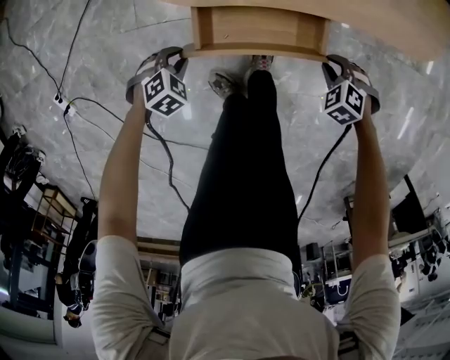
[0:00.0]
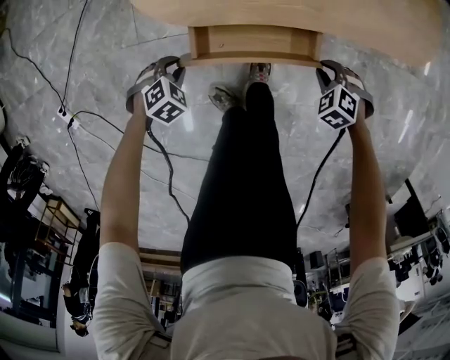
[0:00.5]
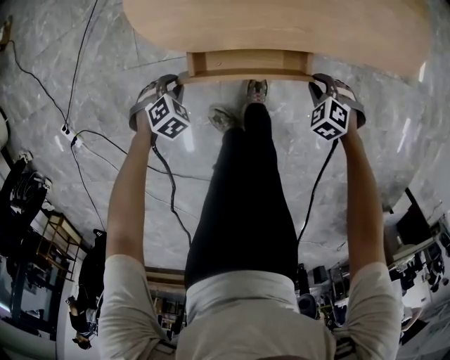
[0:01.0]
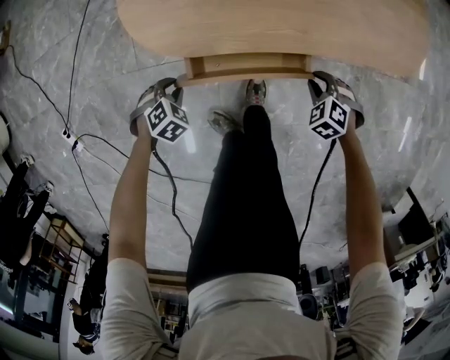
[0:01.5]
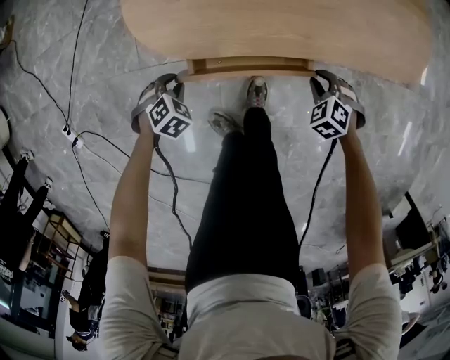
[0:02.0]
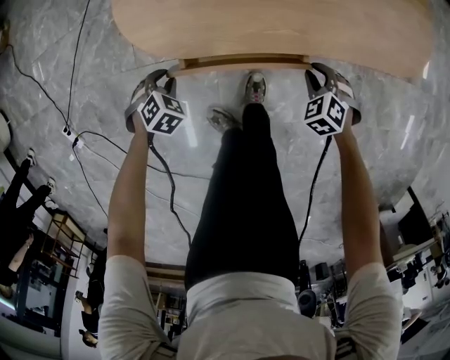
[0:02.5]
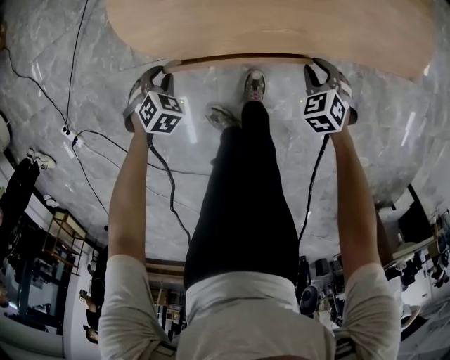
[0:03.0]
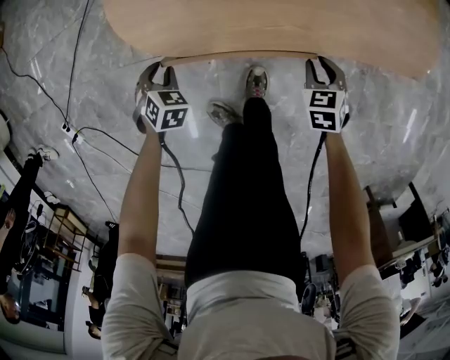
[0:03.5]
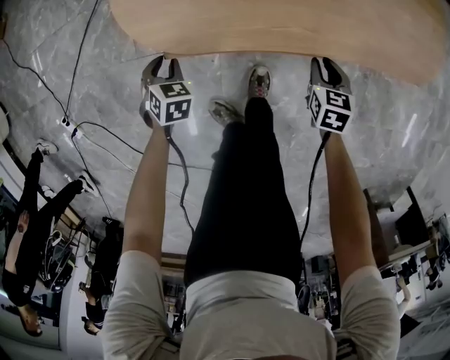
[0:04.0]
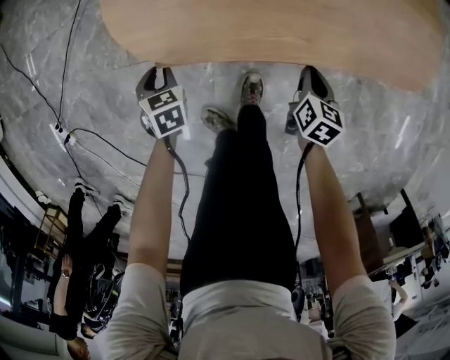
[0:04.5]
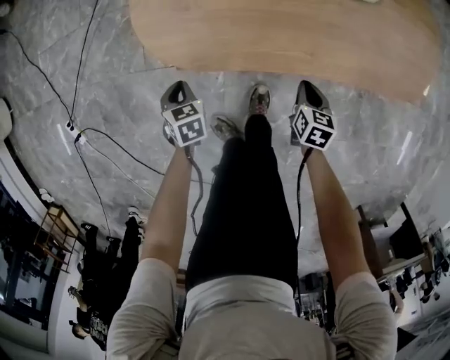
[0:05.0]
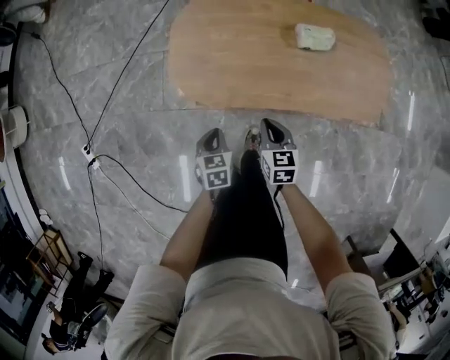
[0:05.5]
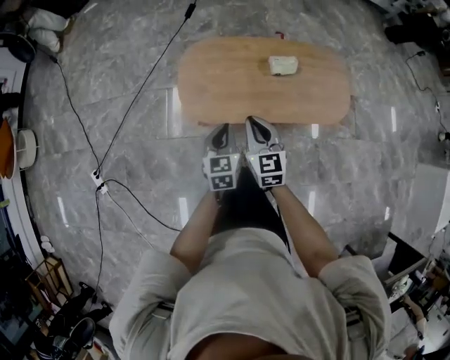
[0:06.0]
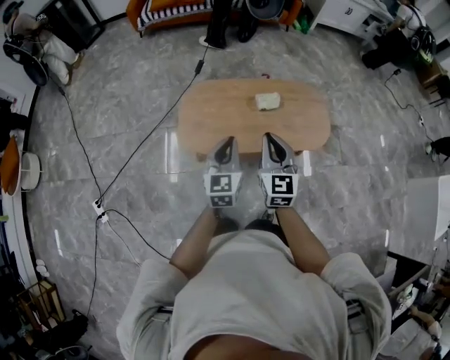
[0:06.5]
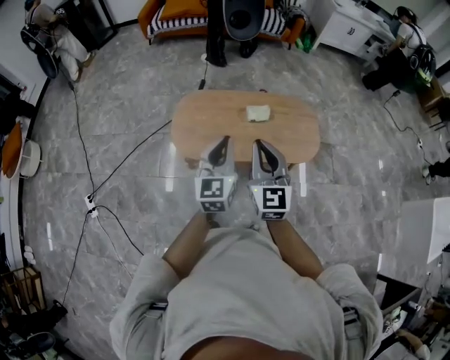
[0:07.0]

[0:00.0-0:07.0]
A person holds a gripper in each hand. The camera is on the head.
0:00.0 to 0:02.0: The right gripper moves roughly 10 cm; the left gripper changes place by roughly 5 cm.
0:02.0 to 0:03.5: The left gripper turns by roughly 30 degrees. The right gripper changes its angle by some 40 degrees.
0:03.5 to 0:05.0: The right gripper changes its angle by about 30 degrees. The left gripper swivels approximately 30 degrees, and closes up.
0:05.0 to 0:07.0: Both grippers move upward, roughly 70 cm. The right gripper tips its fingers upward by about 50 degrees, while the left gripper tilts its fingers approximately 60 degrees upward.

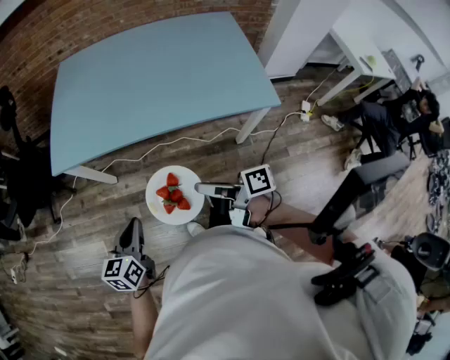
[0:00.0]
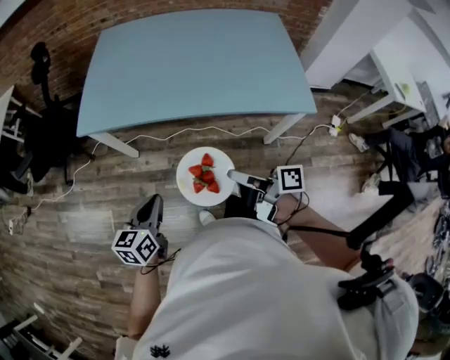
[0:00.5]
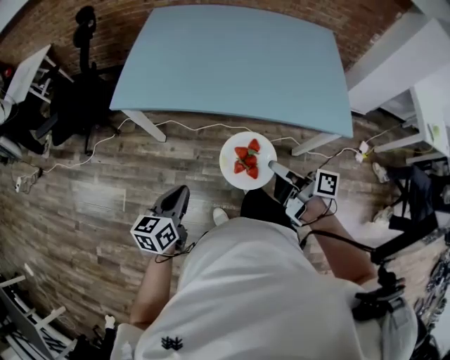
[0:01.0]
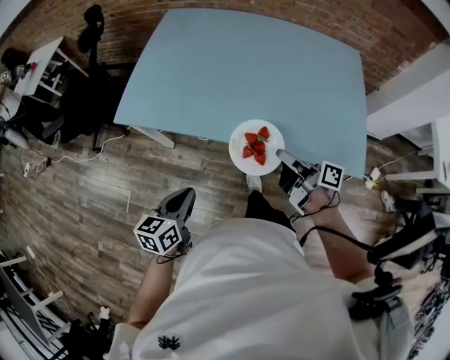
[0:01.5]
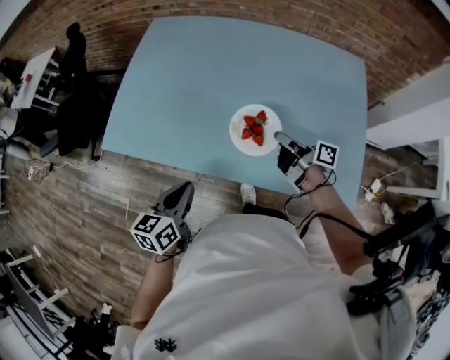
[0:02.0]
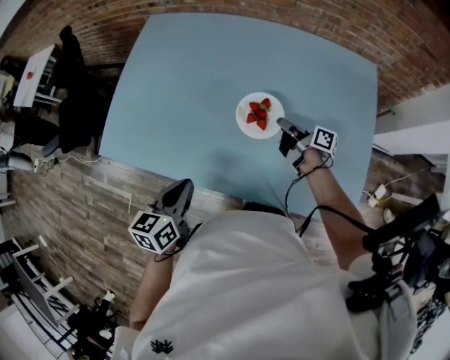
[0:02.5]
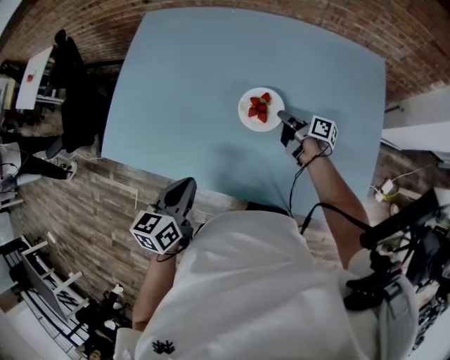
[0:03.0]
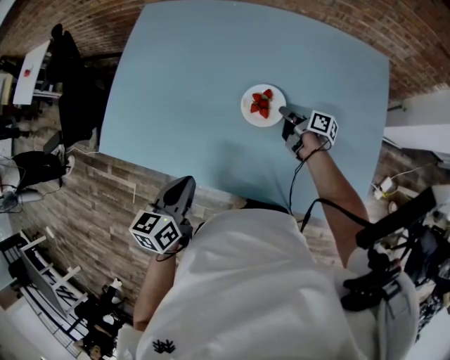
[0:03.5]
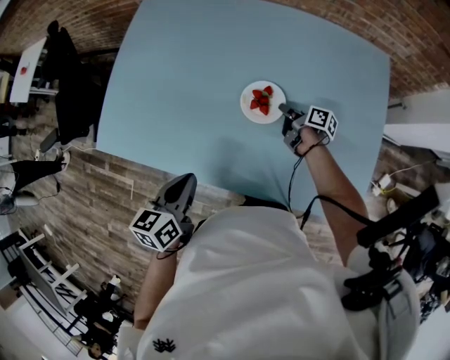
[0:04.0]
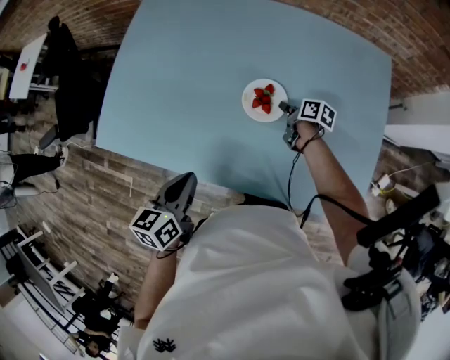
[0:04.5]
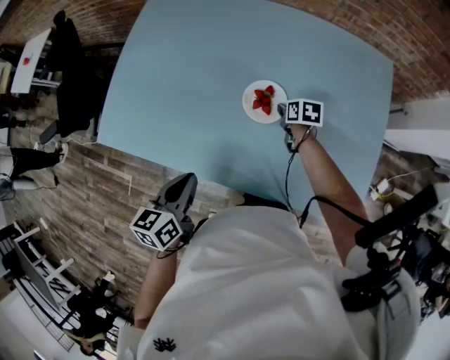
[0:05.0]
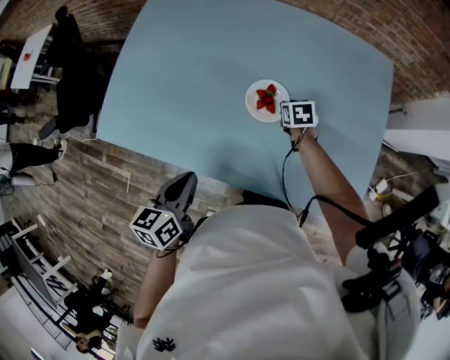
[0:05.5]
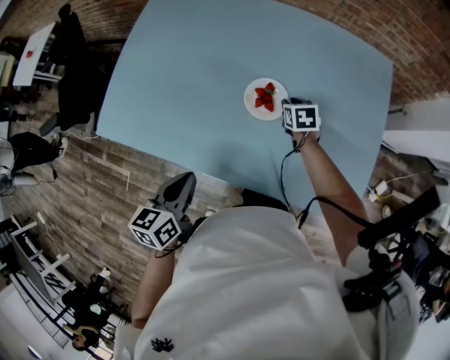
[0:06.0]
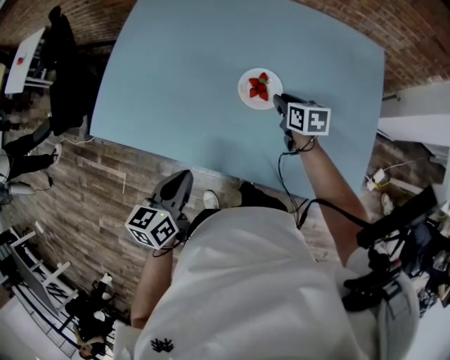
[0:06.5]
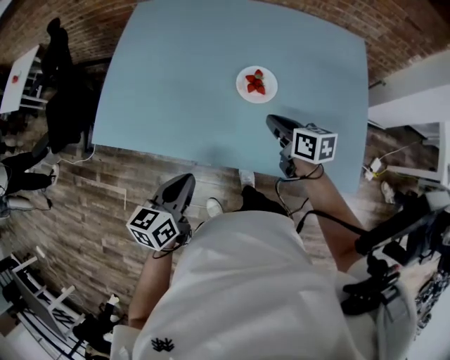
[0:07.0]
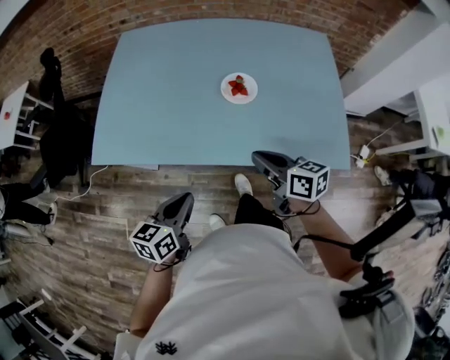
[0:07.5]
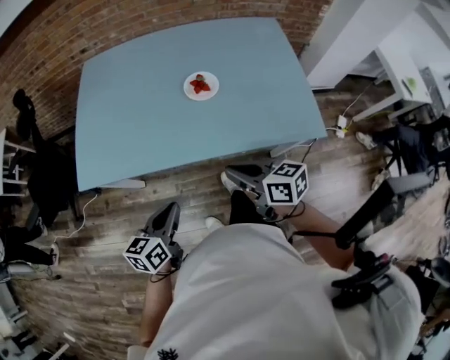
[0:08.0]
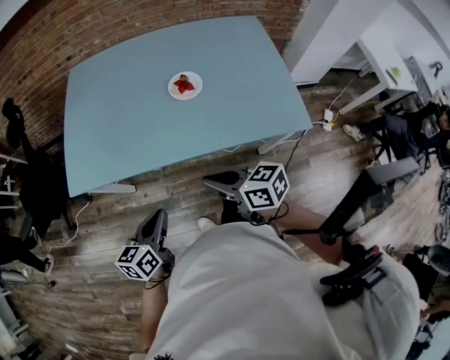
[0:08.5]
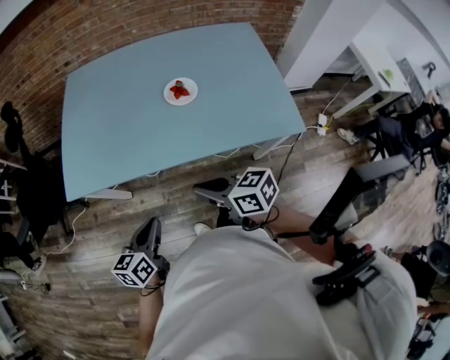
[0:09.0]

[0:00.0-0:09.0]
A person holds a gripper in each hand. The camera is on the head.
0:00.0 to 0:02.0: The left gripper moves forward and to the right, some 30 cm, while the right gripper travels forward and to the right by some 40 cm.
0:02.0 to 0:04.5: The right gripper heads forward and downward, covering about 20 cm, and angles its fingers downward, by roughly 30 degrees. Meanwhile the left gripper goes about 10 cm forward.
0:04.5 to 0:07.0: The left gripper is displaced backward by about 10 cm. The right gripper moves upward, backward and to the left, about 25 cm, and turns by some 30 degrees.
0:07.0 to 0:09.0: The right gripper goes about 30 cm backward and to the left, while the left gripper is displaced backward and to the left by approximately 15 cm.

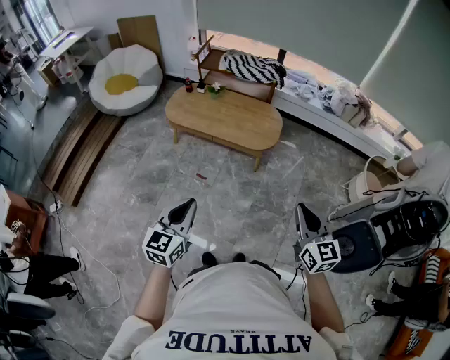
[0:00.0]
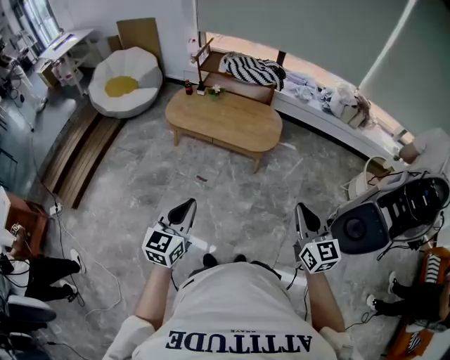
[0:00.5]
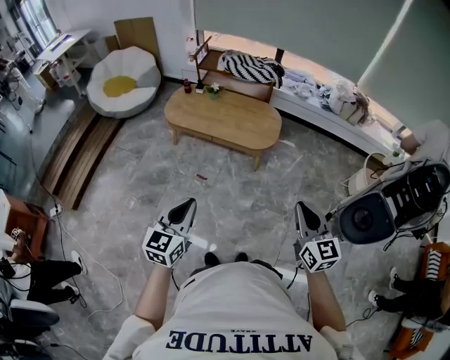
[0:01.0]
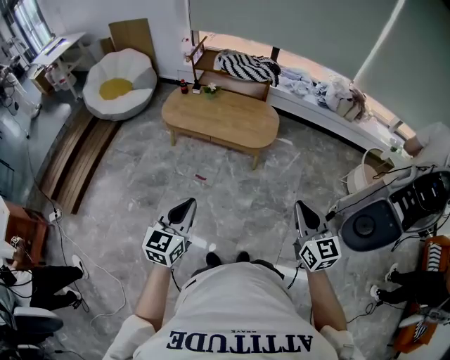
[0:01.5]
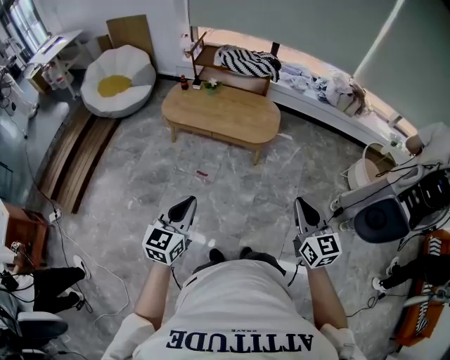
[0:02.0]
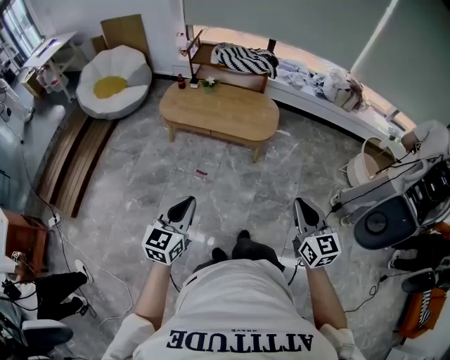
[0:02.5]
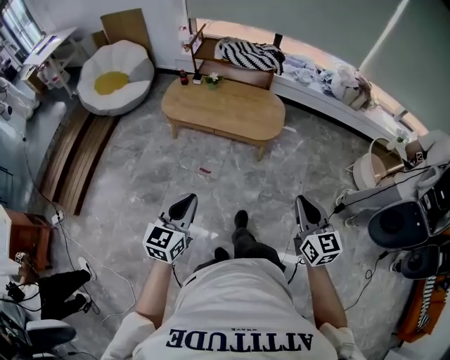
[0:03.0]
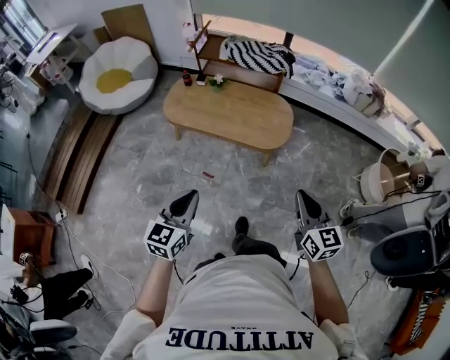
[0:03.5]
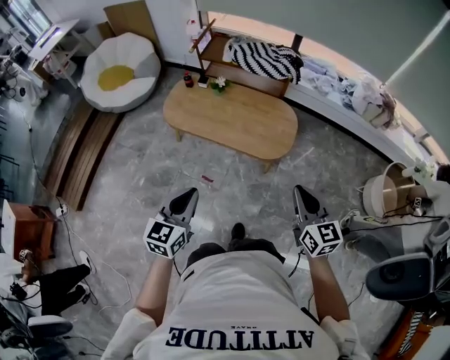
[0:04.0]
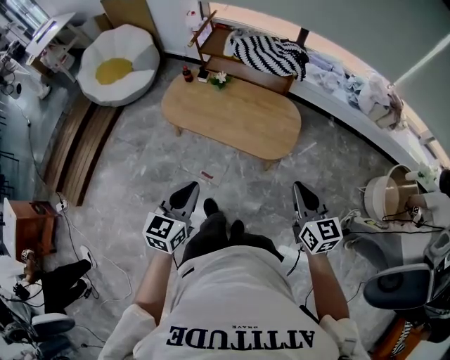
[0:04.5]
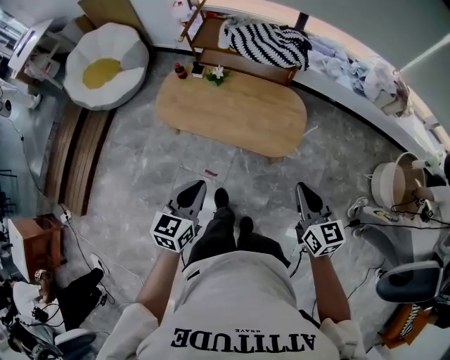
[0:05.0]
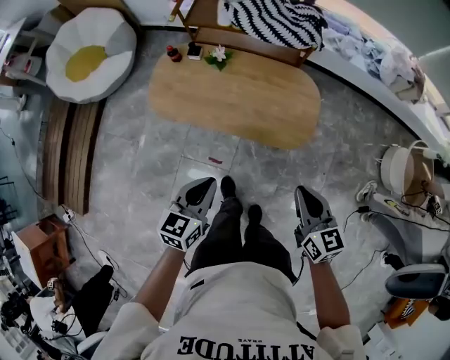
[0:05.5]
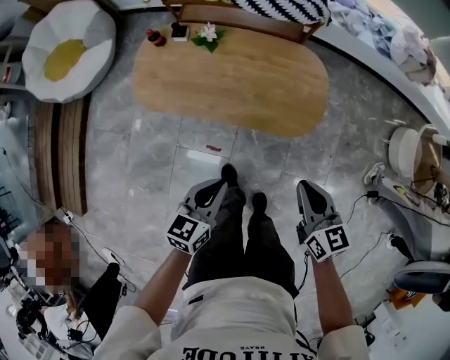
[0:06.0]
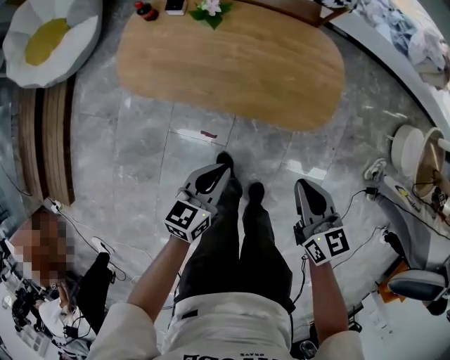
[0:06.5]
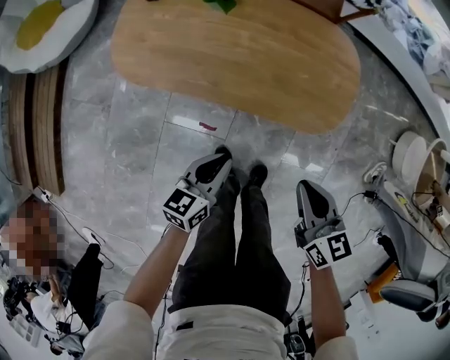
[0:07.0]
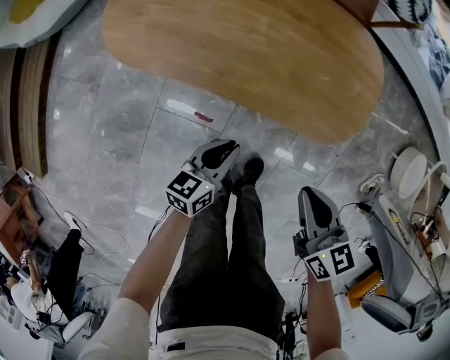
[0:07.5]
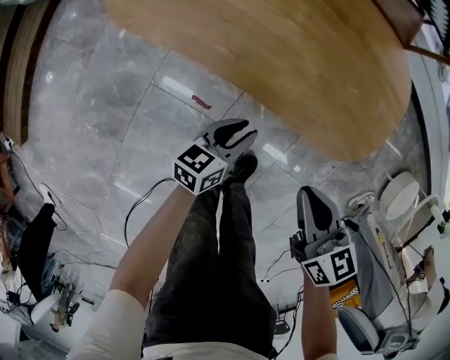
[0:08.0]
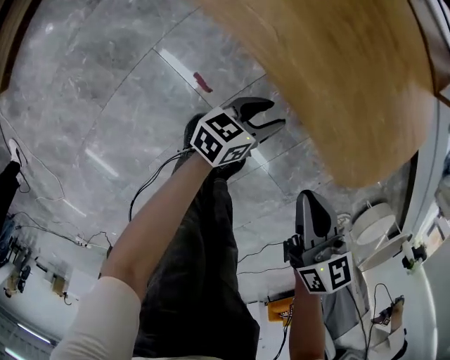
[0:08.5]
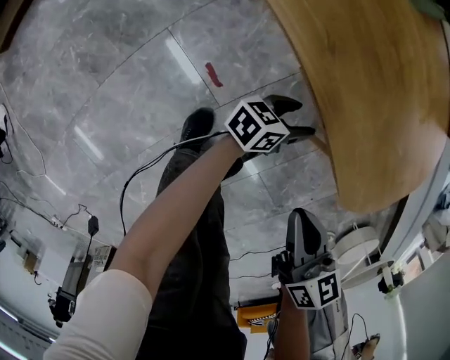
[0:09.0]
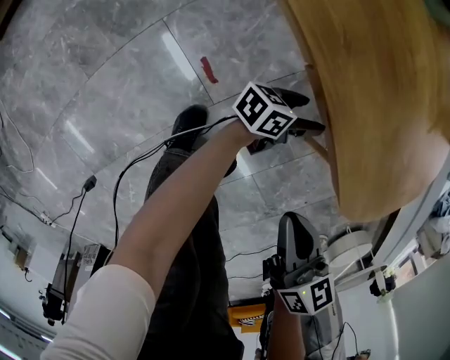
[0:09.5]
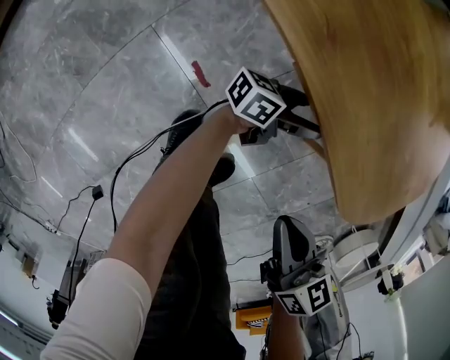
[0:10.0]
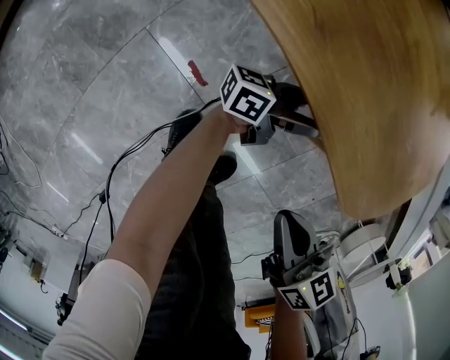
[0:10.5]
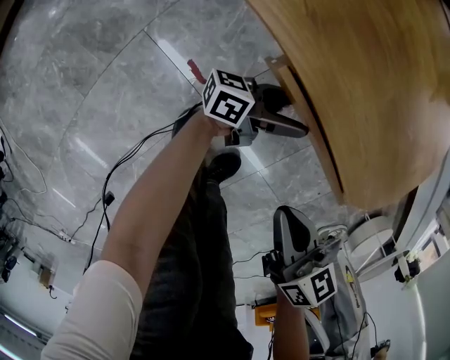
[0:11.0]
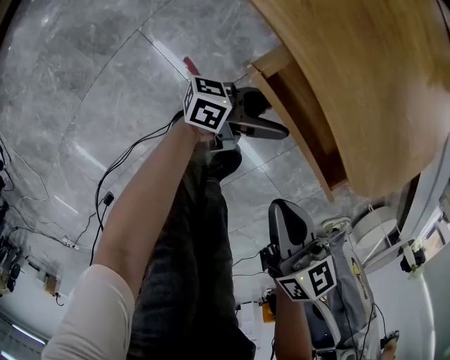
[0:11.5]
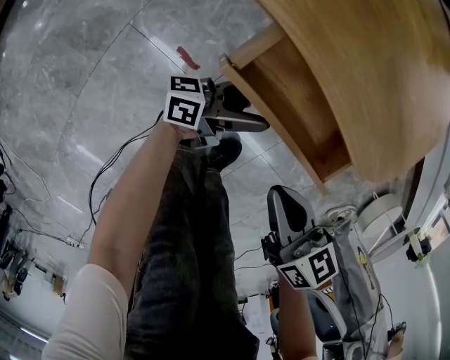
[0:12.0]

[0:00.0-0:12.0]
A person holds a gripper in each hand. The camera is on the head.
0:00.0 to 0:02.0: The grippers both shift to the left by approximately 5 cm.
0:02.0 to 0:04.0: The two grippers go approximately 30 cm forward.
0:04.0 to 0:06.0: The right gripper is displaced forward, downward and to the left by roughly 30 cm. The left gripper moves forward and downward, approximately 35 cm, and turns by roughly 30 degrees.
0:06.0 to 0:08.0: The two grippers go approximately 35 cm downward. The left gripper swivels some 20 degrees; the right gripper changes its angle by roughly 20 degrees.
0:08.0 to 0:10.0: The left gripper moves downward and to the right, some 20 cm, changes its angle by some 30 degrees, and opens up. Meanwhile the right gripper heads downward and backward, covering some 15 cm.
0:10.0 to 0:12.0: The left gripper heads backward and to the left, covering about 10 cm.
